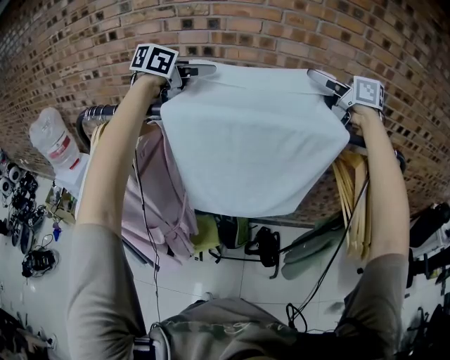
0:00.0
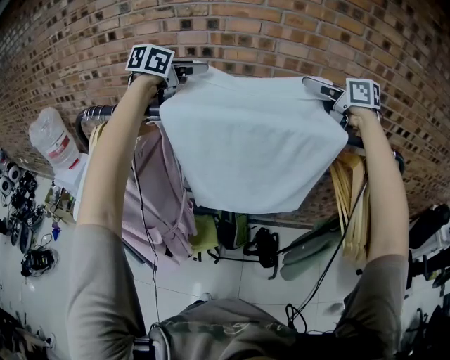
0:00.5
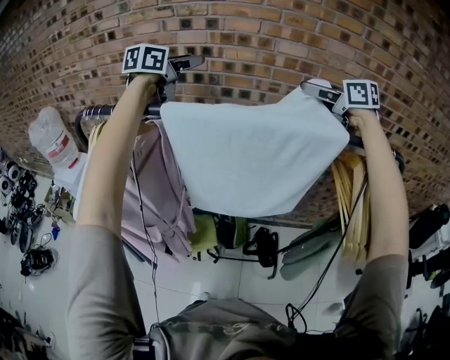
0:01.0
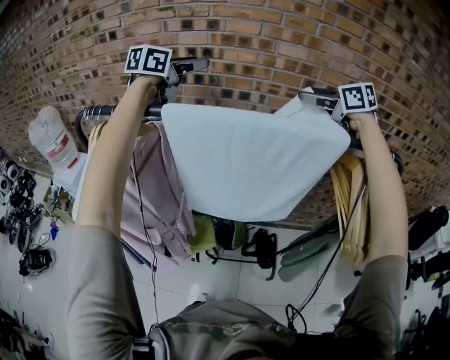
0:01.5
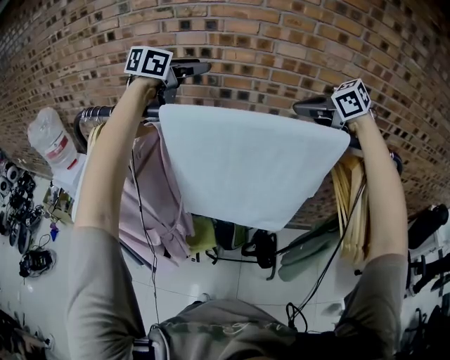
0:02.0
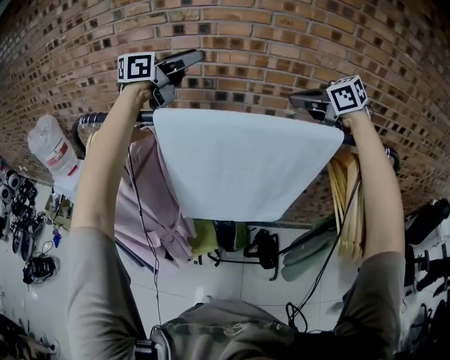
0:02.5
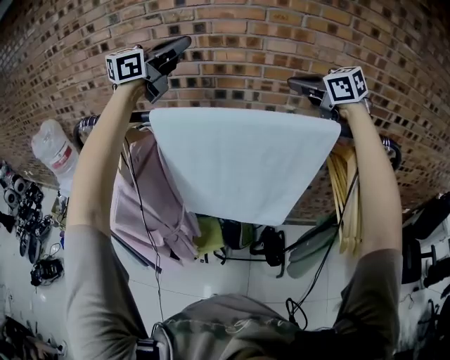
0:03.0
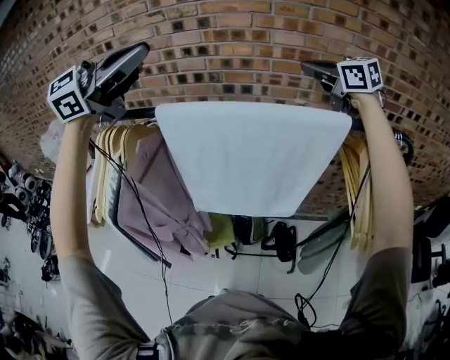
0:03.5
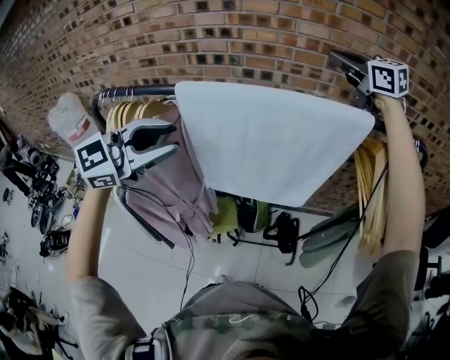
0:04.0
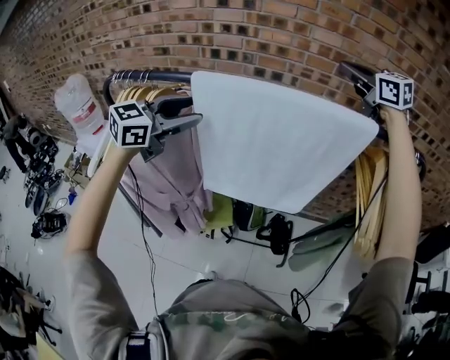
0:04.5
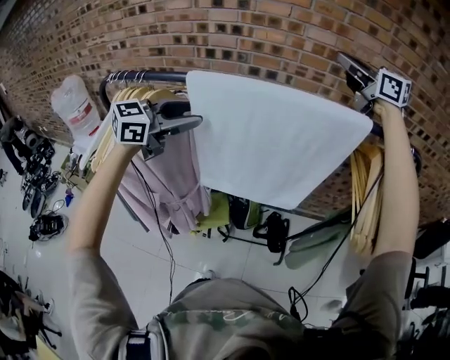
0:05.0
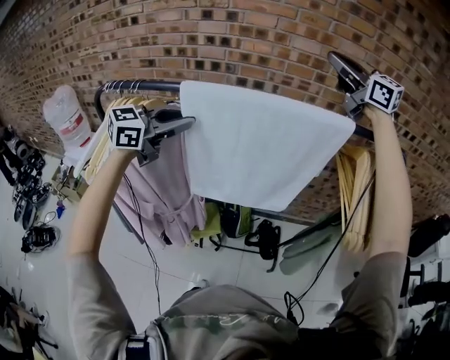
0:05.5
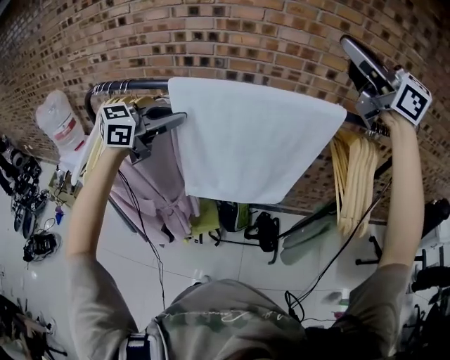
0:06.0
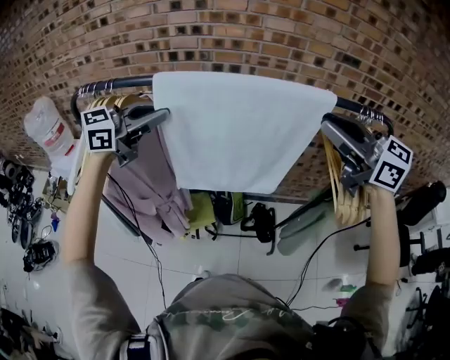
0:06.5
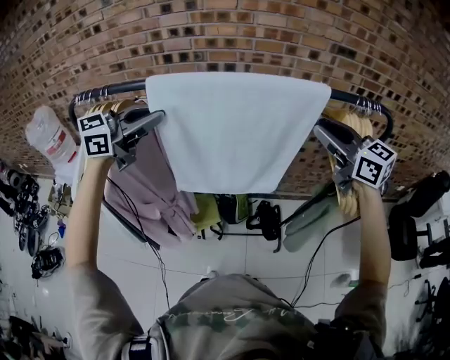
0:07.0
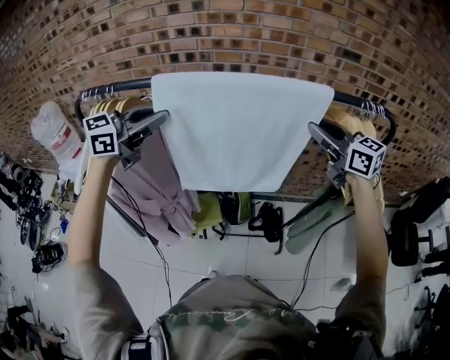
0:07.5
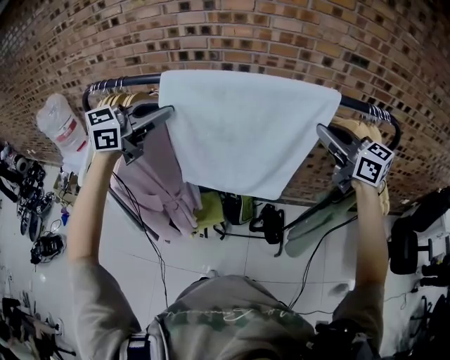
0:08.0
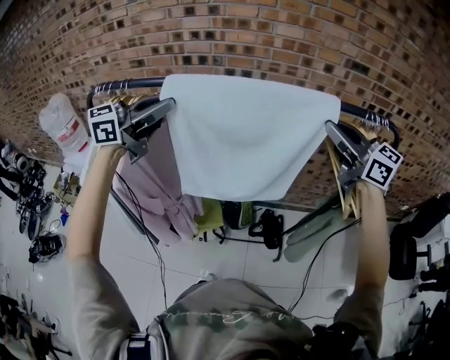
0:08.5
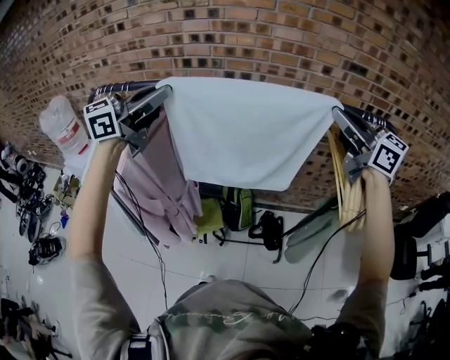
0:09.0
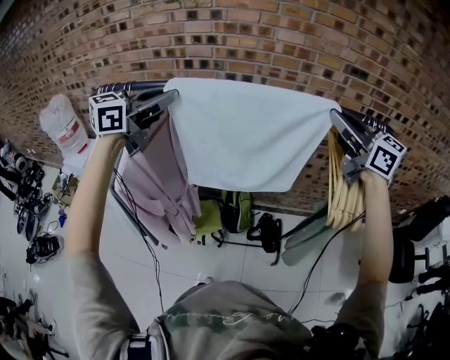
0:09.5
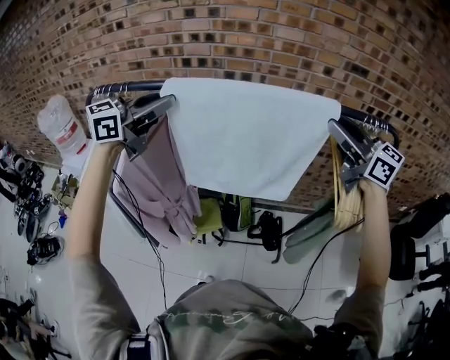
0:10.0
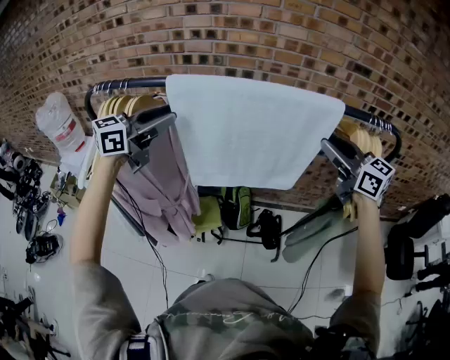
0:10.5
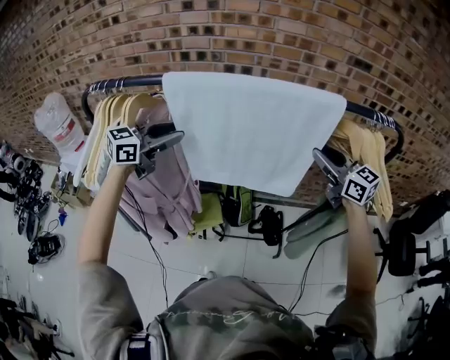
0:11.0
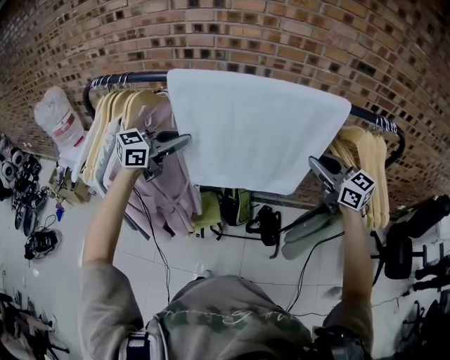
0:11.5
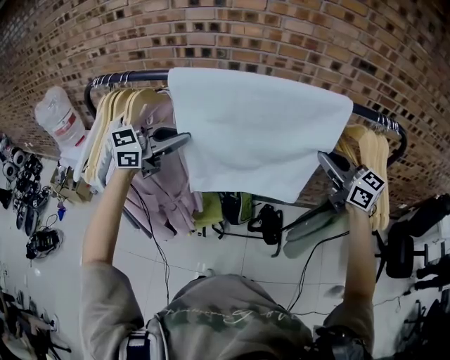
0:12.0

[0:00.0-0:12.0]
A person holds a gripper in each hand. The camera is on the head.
0:00.0 to 0:02.0: The right gripper travels downward by some 10 cm, tips its fingers downward by about 30 degrees, and closes its fingers.
0:02.0 to 0:04.0: The left gripper heads backward, covering about 30 cm, turns by some 30 degrees, and closes. The right gripper travels upward by about 10 cm, and turns by about 30 degrees.
0:04.0 to 0:06.0: The left gripper shifts about 5 cm forward, and opens and closes again, while the right gripper heads backward and upward, covering some 20 cm, and changes its angle by roughly 30 degrees.
0:06.0 to 0:08.0: The right gripper shifts about 25 cm downward, and changes its angle by some 20 degrees.
0:08.0 to 0:10.0: The right gripper is displaced upward by about 5 cm.
0:10.0 to 0:12.0: The two grippers go approximately 15 cm downward. The left gripper opens, then closes again.

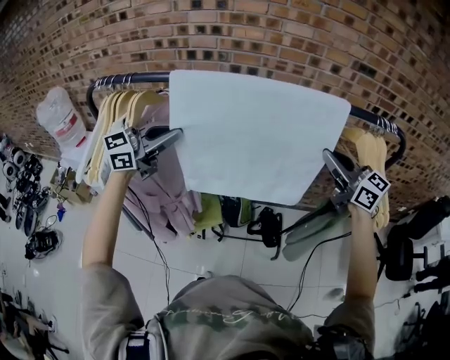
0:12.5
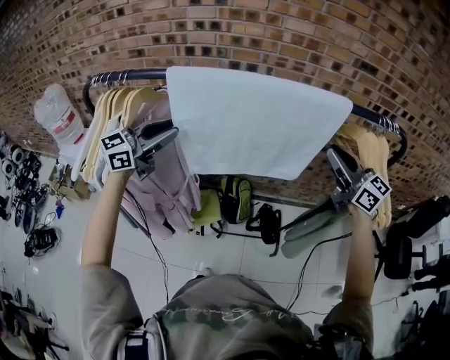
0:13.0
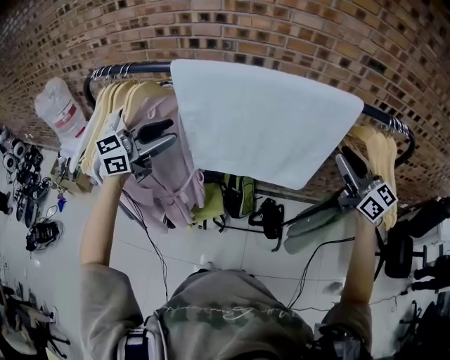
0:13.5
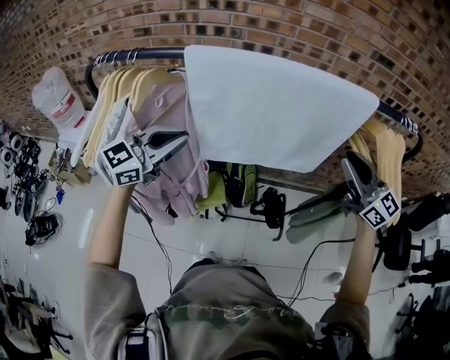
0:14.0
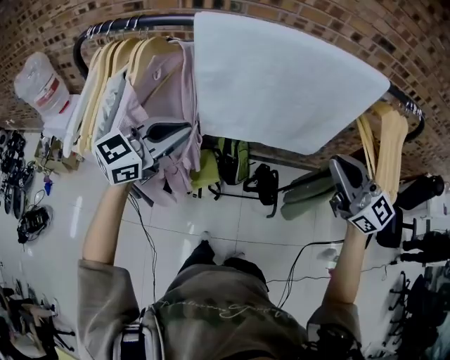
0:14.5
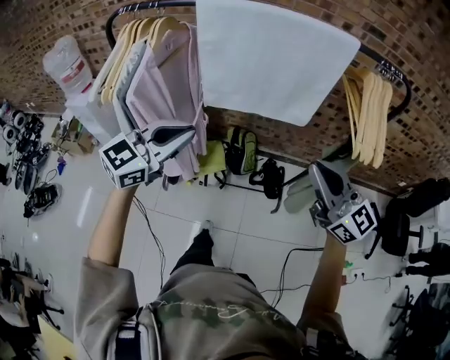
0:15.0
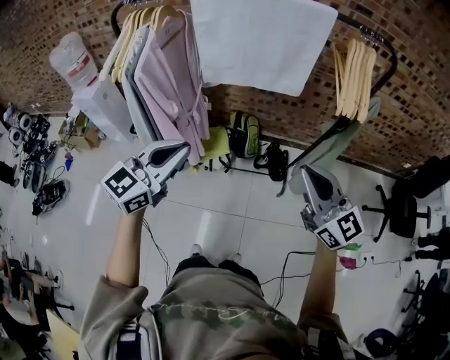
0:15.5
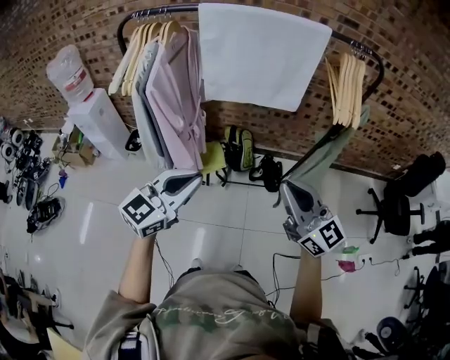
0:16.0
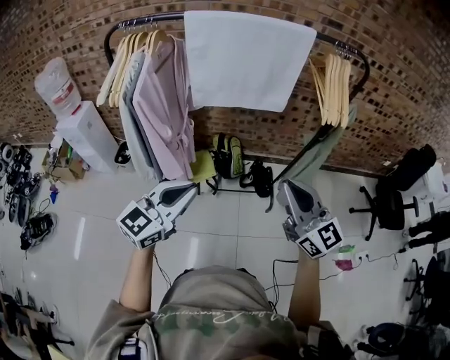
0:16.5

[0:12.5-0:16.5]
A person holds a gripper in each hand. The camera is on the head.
0:12.5 to 0:14.5: The left gripper goes approximately 10 cm backward and downward, and opens, then closes again. The right gripper goes roughly 15 cm backward and to the left.
0:14.5 to 0:16.5: Both grippers travel together backward, about 30 cm.

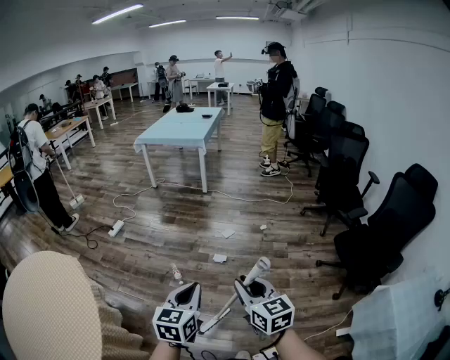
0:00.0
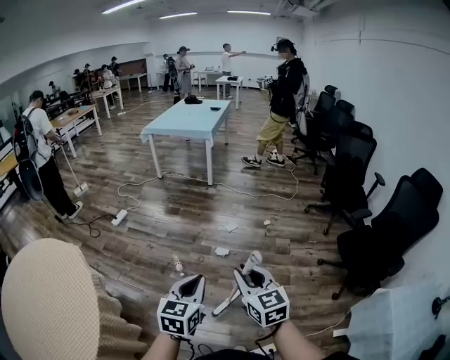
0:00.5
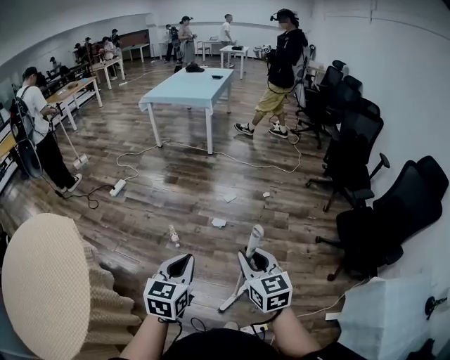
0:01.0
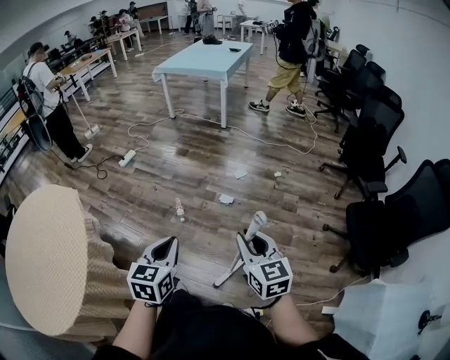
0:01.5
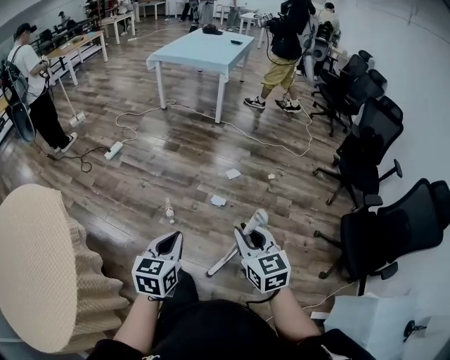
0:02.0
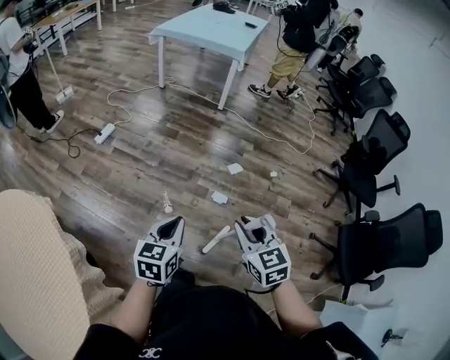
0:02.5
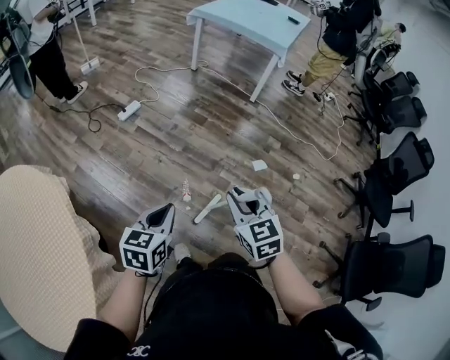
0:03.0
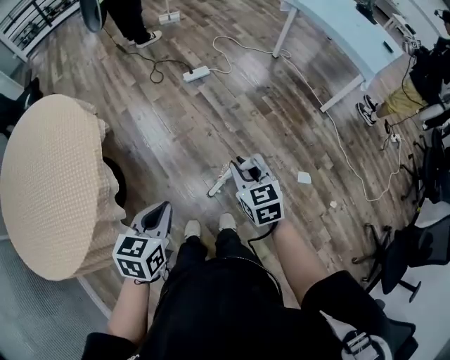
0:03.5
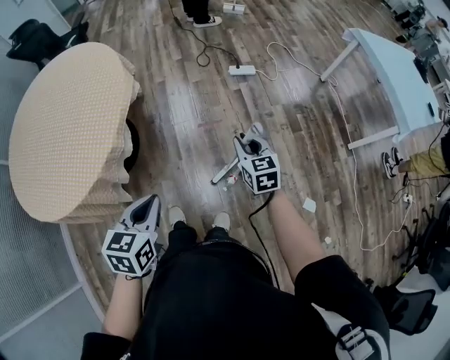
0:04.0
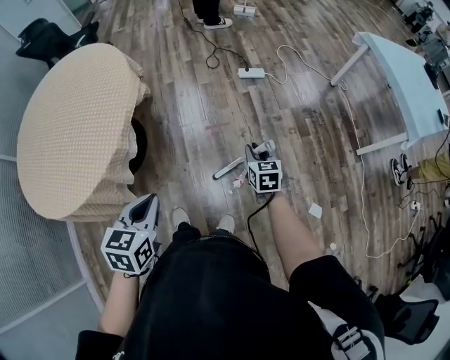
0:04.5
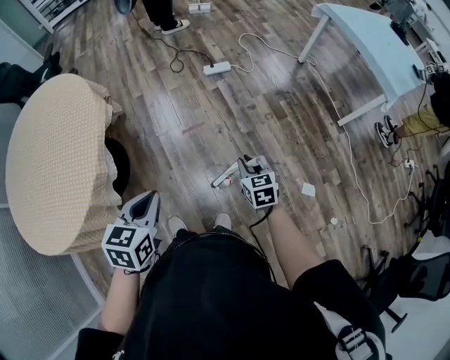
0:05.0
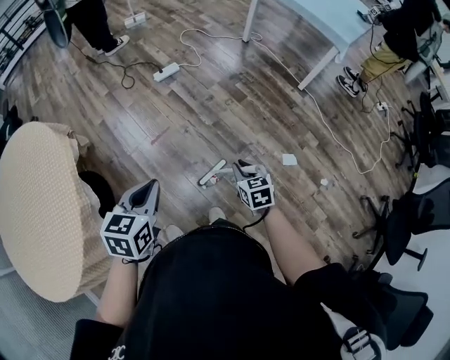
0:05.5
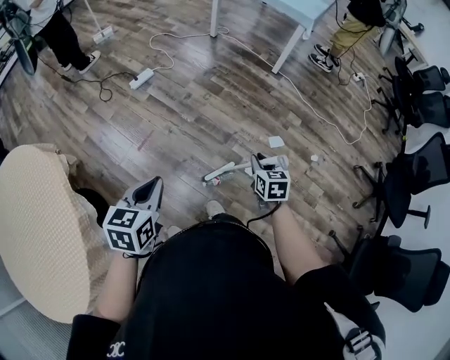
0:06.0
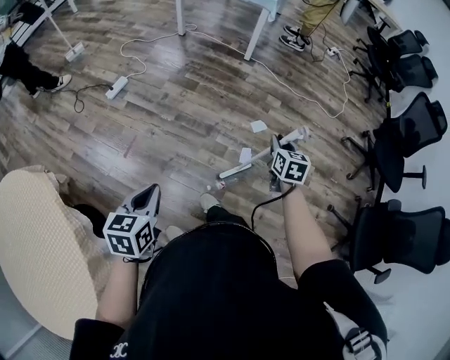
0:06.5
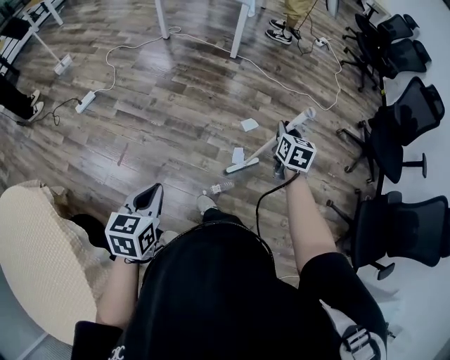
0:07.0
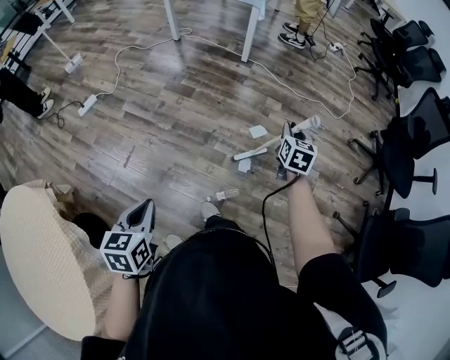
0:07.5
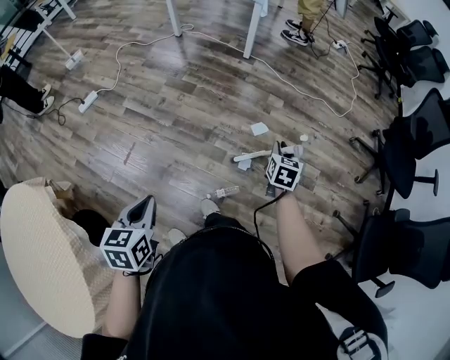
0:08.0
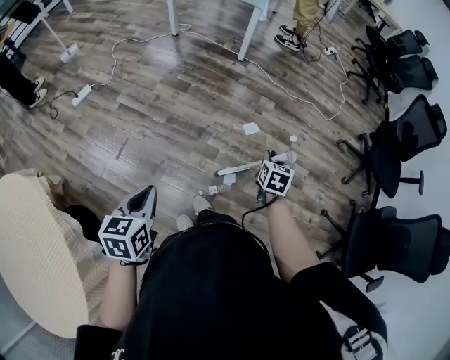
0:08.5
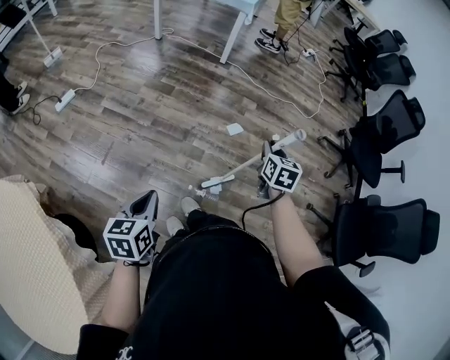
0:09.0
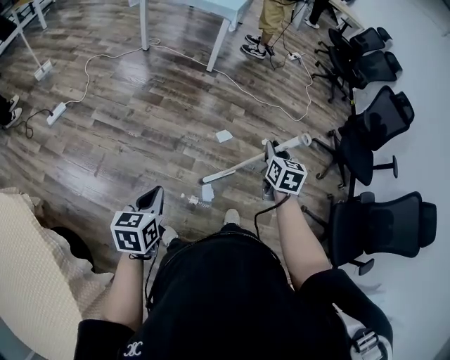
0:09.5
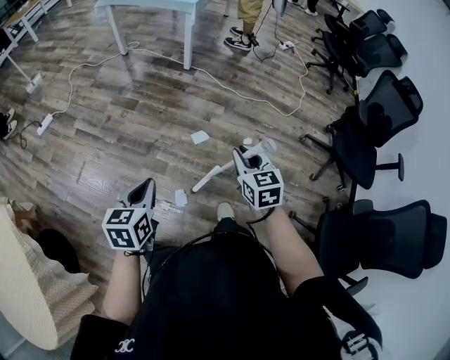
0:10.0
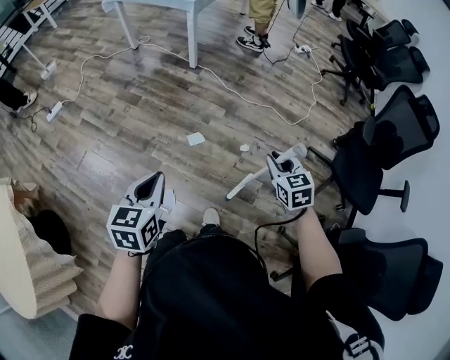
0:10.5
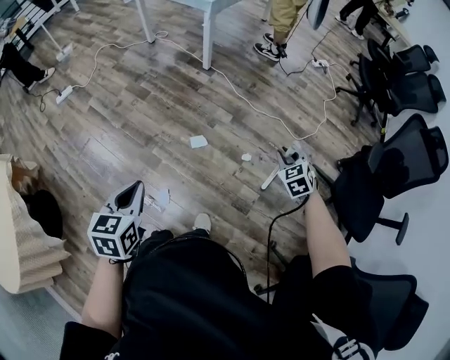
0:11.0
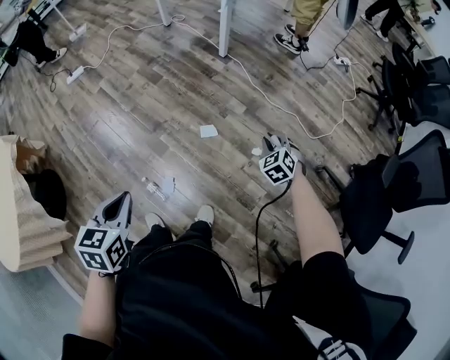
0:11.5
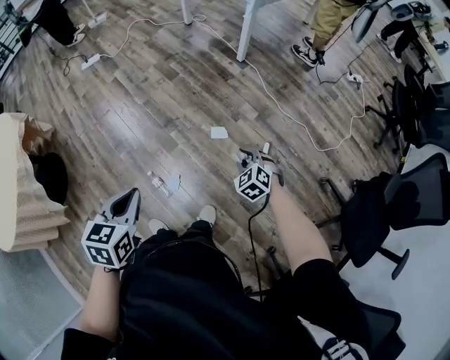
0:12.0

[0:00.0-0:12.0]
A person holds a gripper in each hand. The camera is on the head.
0:00.0 to 0:02.0: The two grippers go some 15 cm forward and downward.
0:02.0 to 0:04.0: The left gripper ends up some 30 cm from where it was, and swivels about 60 degrees, while the right gripper moves some 60 cm, and swivels roughly 60 degrees.
0:04.0 to 0:06.0: The left gripper moves roughly 15 cm, and swivels some 40 degrees; the right gripper ends up approximately 35 cm from where it was, and changes its angle by approximately 50 degrees.
0:06.0 to 0:08.0: The right gripper shifts some 20 cm to the right, and swivels roughly 30 degrees. The left gripper is displaced to the right by about 10 cm.
0:08.0 to 0:10.0: The left gripper shifts some 30 cm to the right and forward; the right gripper heads to the right and upward, covering some 20 cm, and turns by roughly 30 degrees.
0:10.0 to 0:12.0: The right gripper is displaced downward by some 15 cm, and twists some 50 degrees counterclockwise, seen from behind. Meanwhile the left gripper changes place by approximately 15 cm, and swivels some 20 degrees.
